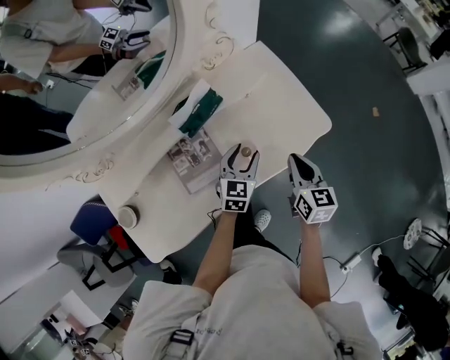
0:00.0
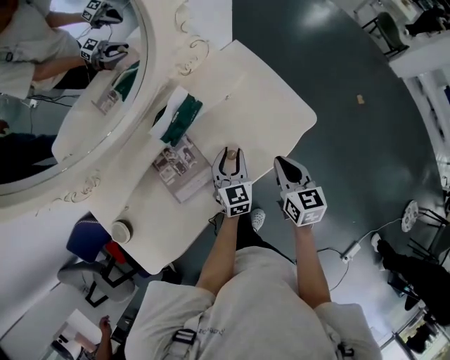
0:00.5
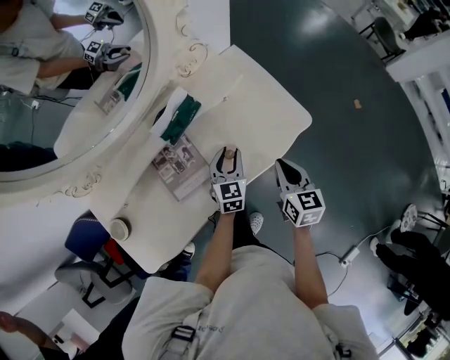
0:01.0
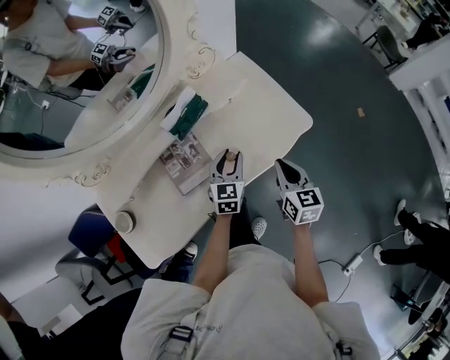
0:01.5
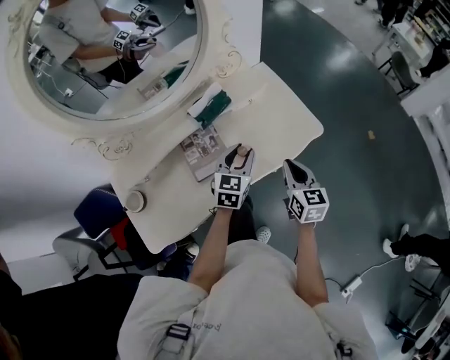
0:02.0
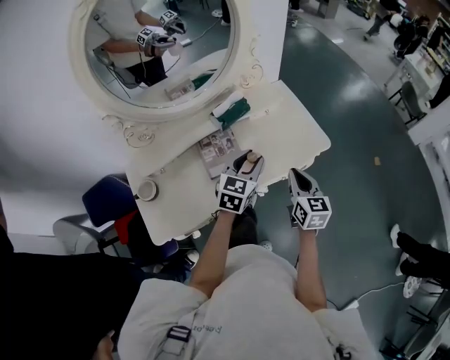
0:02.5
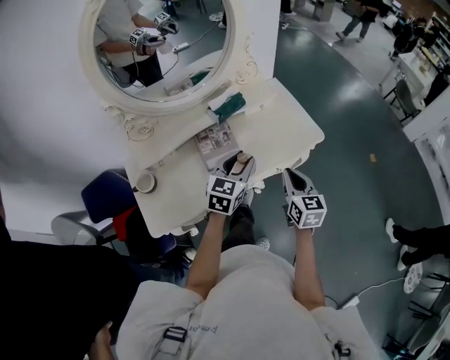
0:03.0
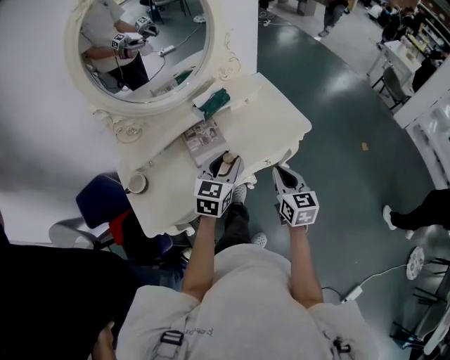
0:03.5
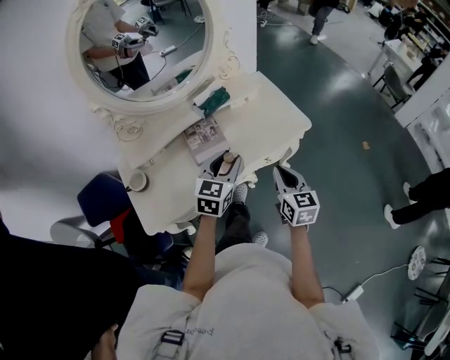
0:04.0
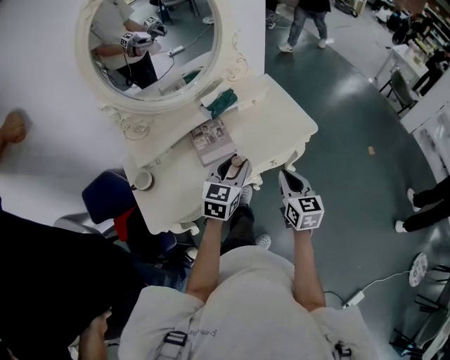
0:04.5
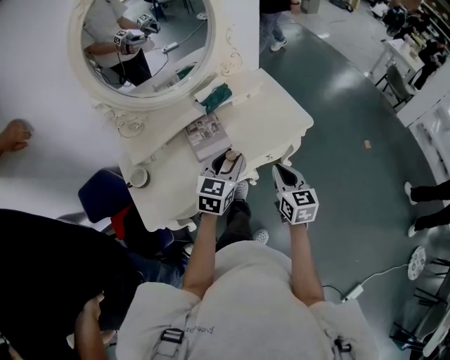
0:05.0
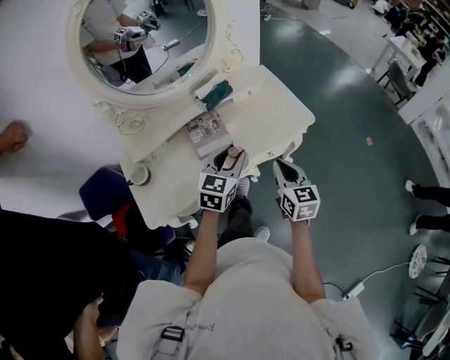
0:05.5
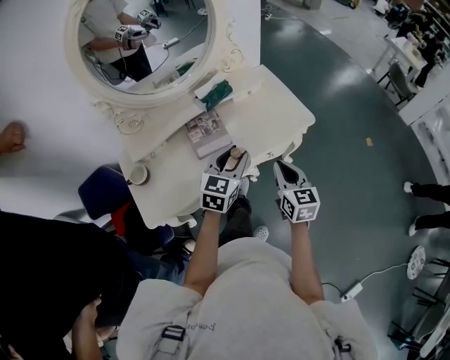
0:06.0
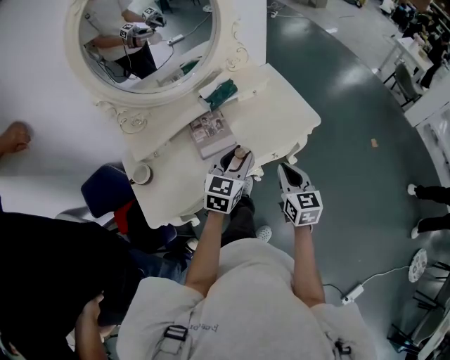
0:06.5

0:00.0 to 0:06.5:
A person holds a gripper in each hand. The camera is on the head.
0:00.0 to 0:02.0: The right gripper shifts approximately 10 cm backward and upward. Meanwhile the left gripper goes about 10 cm upward.
0:02.0 to 0:04.5: The left gripper is displaced backward and upward by approximately 15 cm. Meanwhile the right gripper moves backward, about 10 cm.
0:04.5 to 0:06.5: The grippers make only small movements.

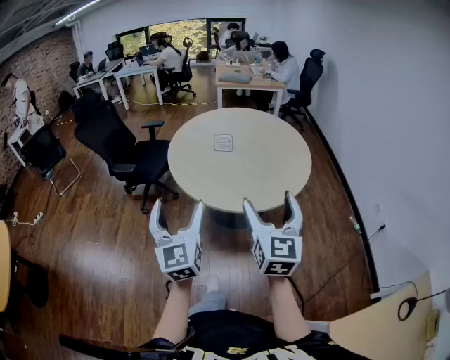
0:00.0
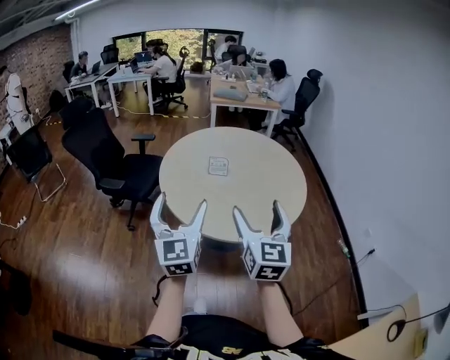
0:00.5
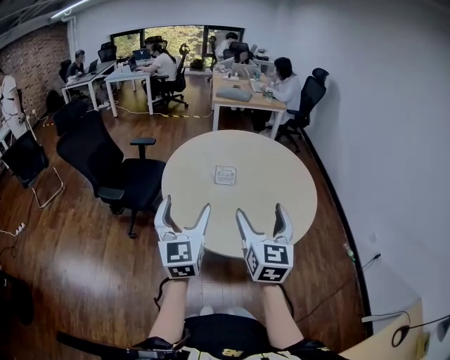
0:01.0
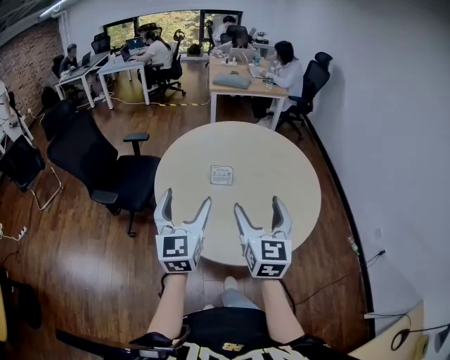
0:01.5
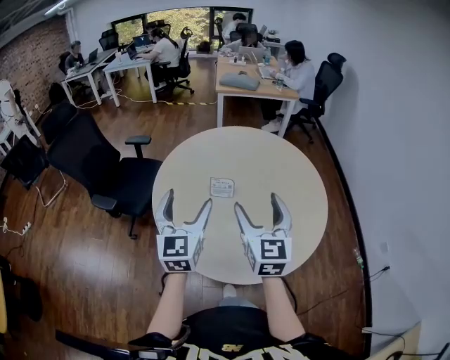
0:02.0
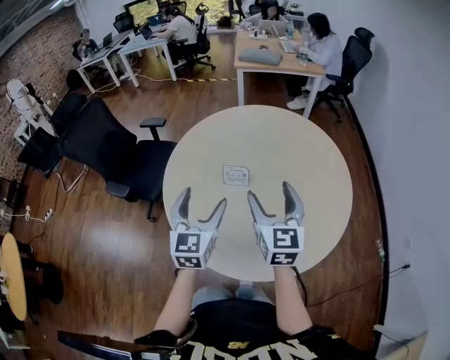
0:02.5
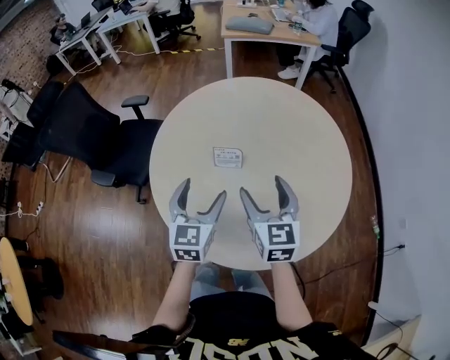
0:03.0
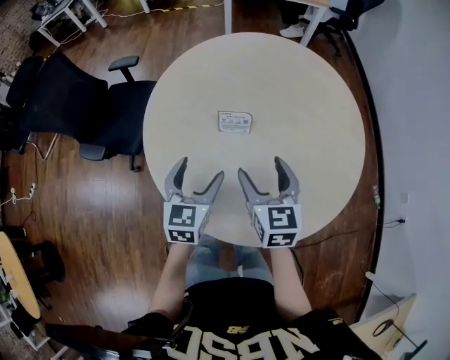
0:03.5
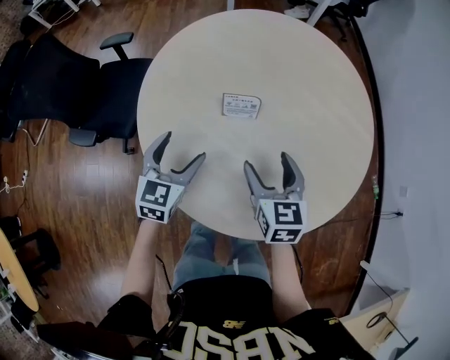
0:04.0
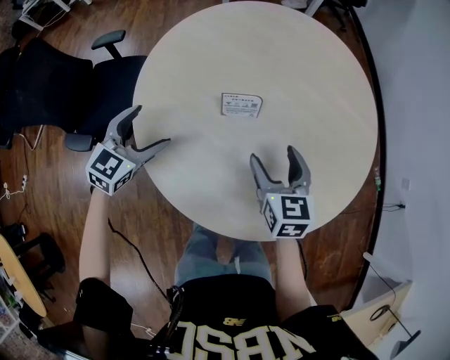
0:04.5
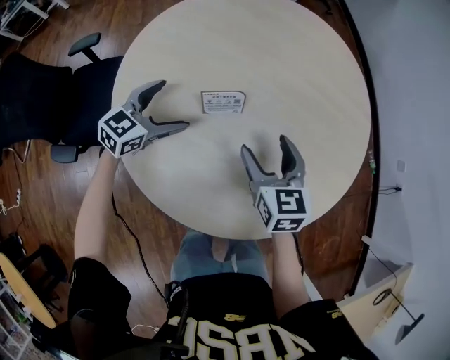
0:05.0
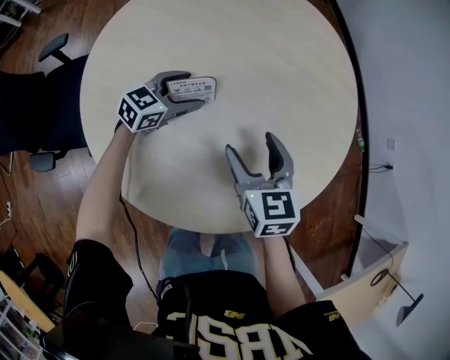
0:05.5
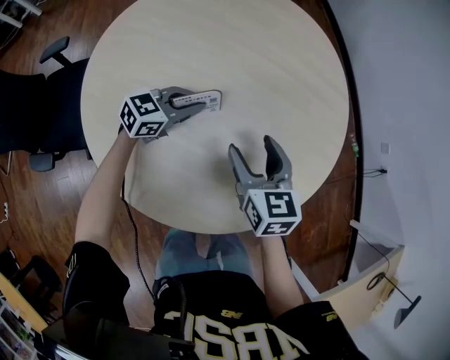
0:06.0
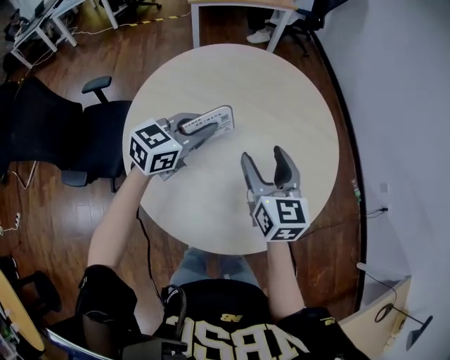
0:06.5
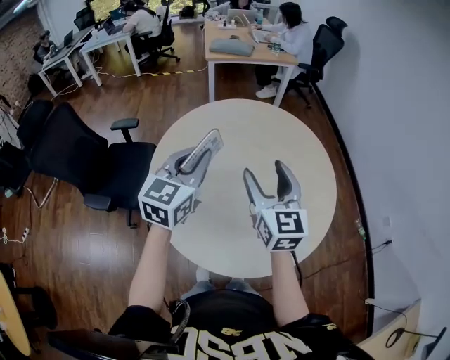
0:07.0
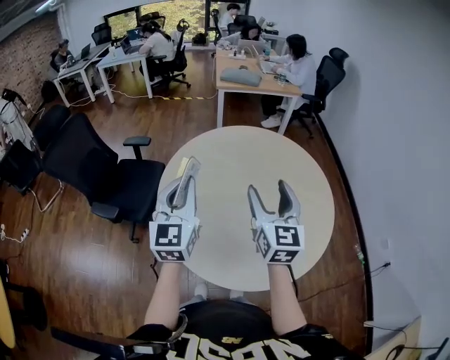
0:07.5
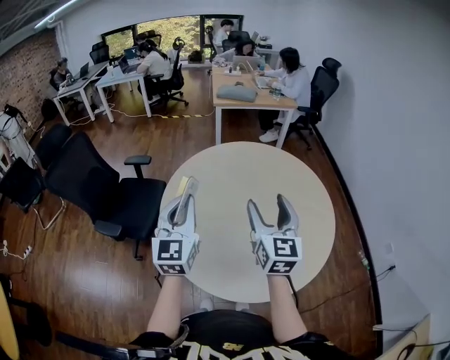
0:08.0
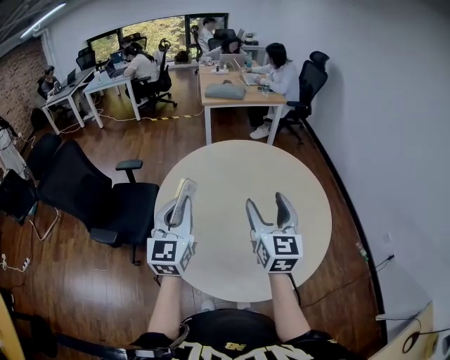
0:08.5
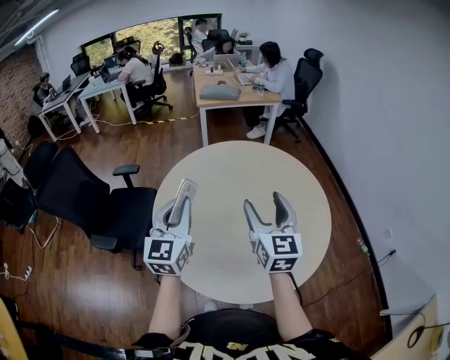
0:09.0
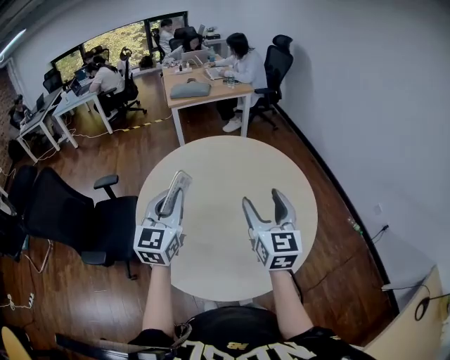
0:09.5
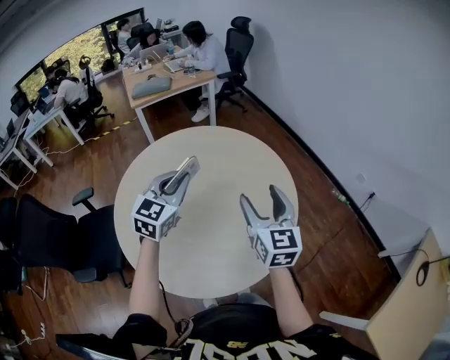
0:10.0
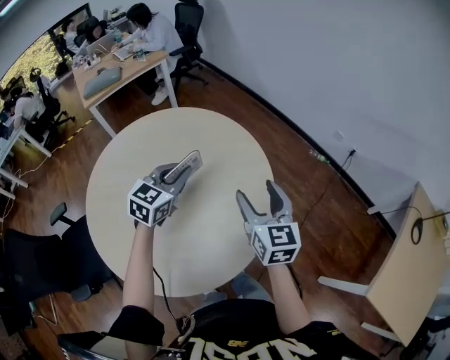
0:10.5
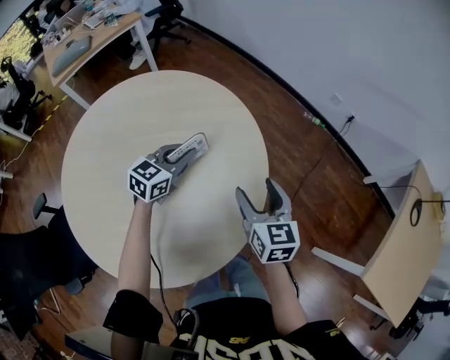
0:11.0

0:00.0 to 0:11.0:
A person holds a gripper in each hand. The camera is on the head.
0:00.0 to 0:02.0: The grippers both shift forward by about 40 cm.
0:02.0 to 0:03.5: The right gripper travels downward and forward by approximately 20 cm, and rotates some 20 degrees, while the left gripper heads downward, covering about 20 cm, and swivels roughly 30 degrees.
0:03.5 to 0:05.5: The right gripper is displaced downward by approximately 10 cm; the left gripper ends up roughly 25 cm from where it was, and swivels roughly 50 degrees.
0:05.5 to 0:07.5: Both grippers move upward, about 35 cm. The left gripper rotates some 70 degrees, and closes its fingers, while the right gripper tilts its fingers roughly 30 degrees upward.
0:07.5 to 0:09.0: There are only small adjustments of the grippers.
0:09.0 to 0:11.0: The left gripper changes place by some 50 cm, and swivels roughly 70 degrees; the right gripper ends up about 35 cm from where it was, and changes its angle by about 40 degrees.

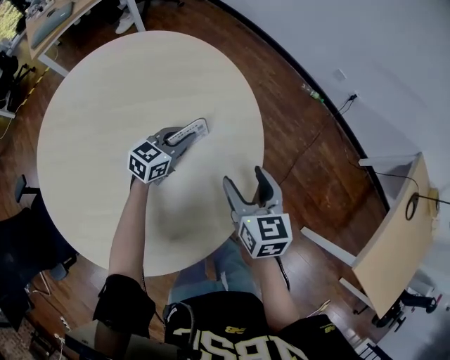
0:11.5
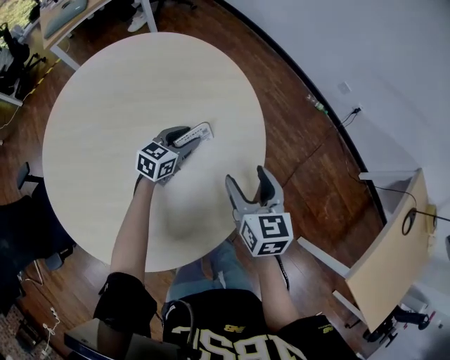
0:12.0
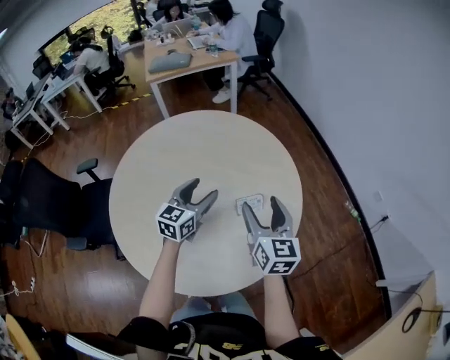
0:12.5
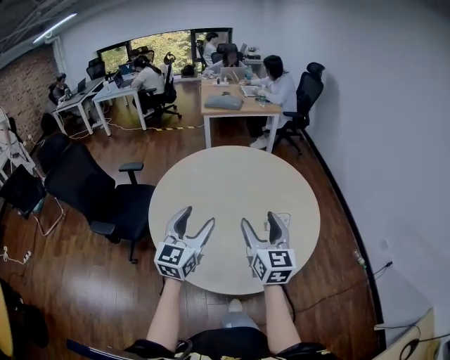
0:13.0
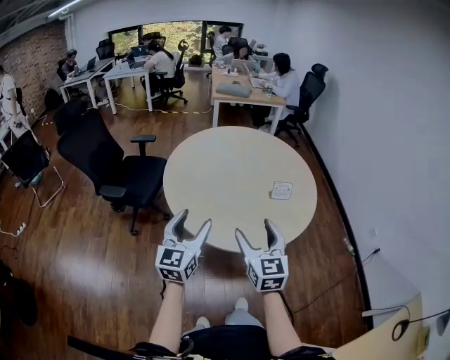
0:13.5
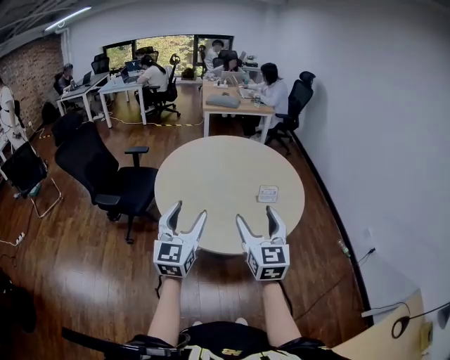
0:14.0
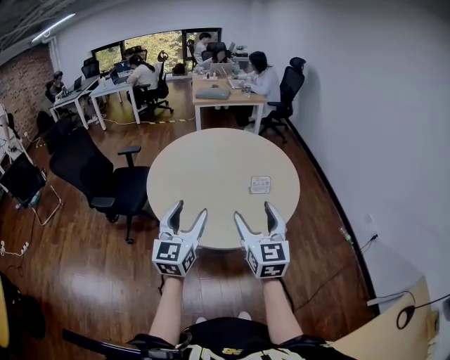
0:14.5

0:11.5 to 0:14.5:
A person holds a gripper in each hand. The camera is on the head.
0:11.5 to 0:13.0: The right gripper moves upward, some 20 cm, and rotates roughly 40 degrees; the left gripper ends up about 50 cm from where it was, rotates approximately 70 degrees, and opens.
0:13.0 to 0:14.5: Both grippers travel together backward, approximately 20 cm.

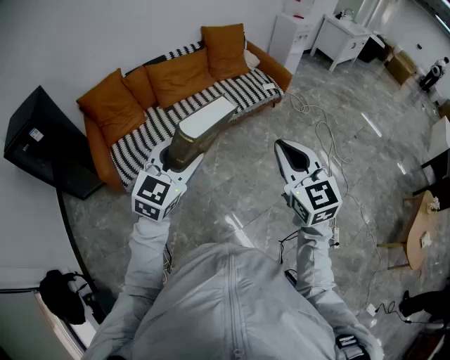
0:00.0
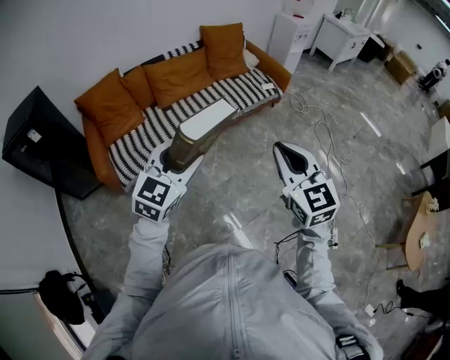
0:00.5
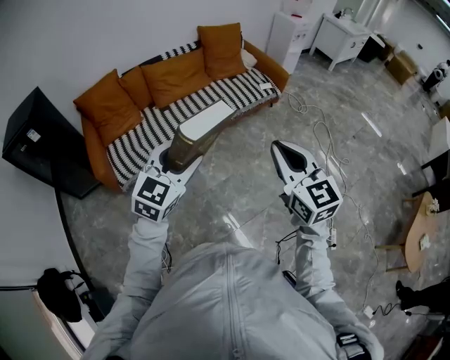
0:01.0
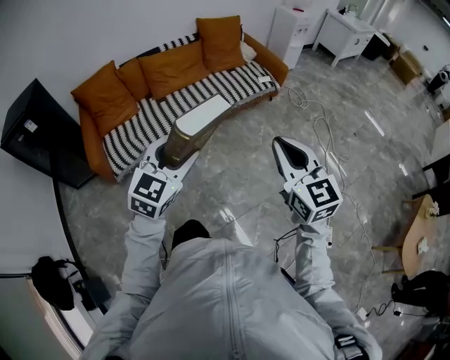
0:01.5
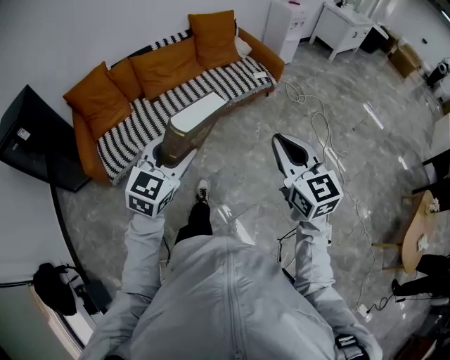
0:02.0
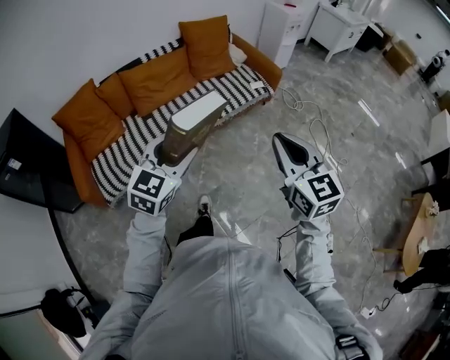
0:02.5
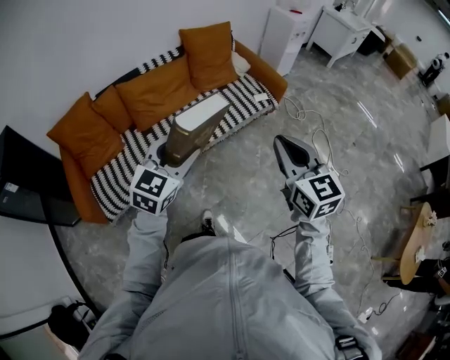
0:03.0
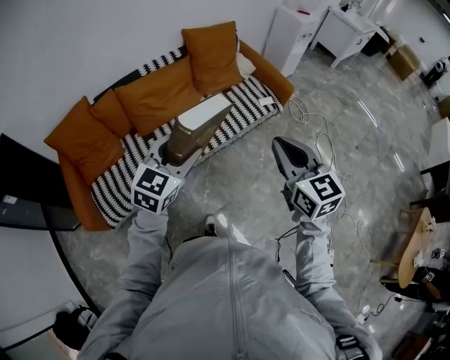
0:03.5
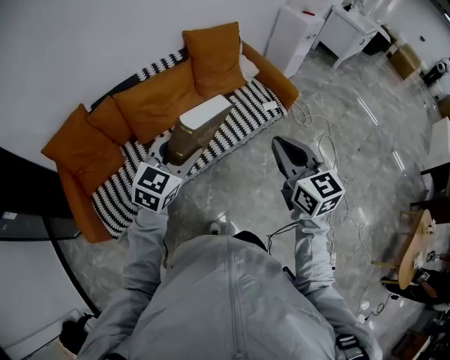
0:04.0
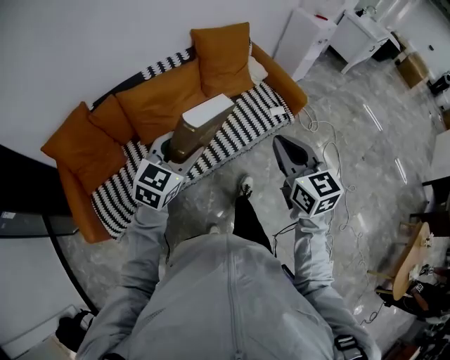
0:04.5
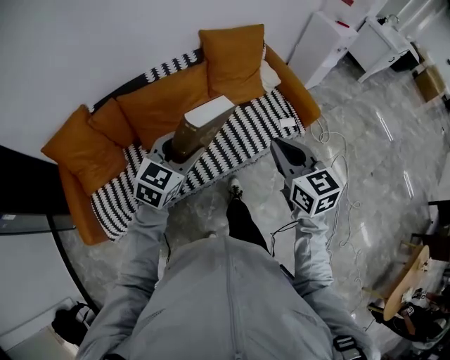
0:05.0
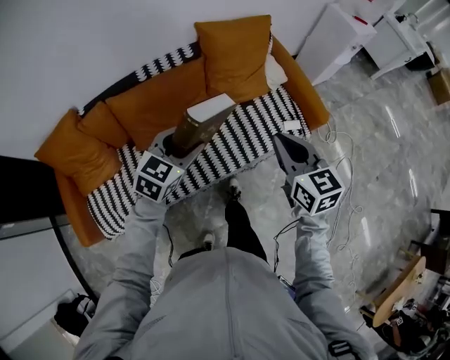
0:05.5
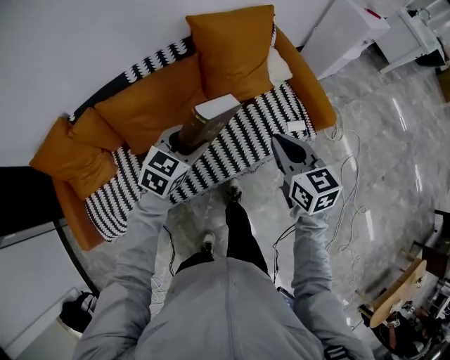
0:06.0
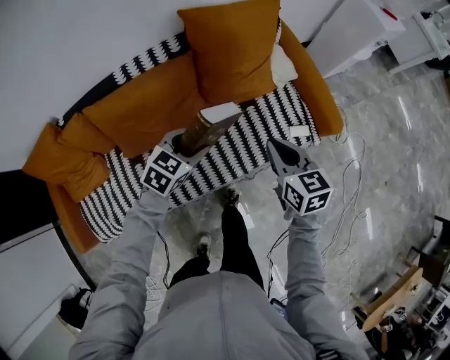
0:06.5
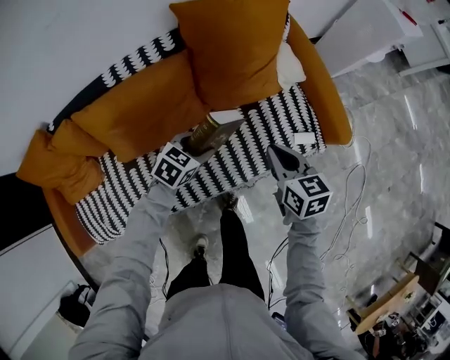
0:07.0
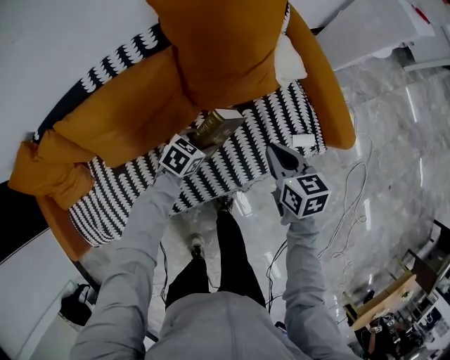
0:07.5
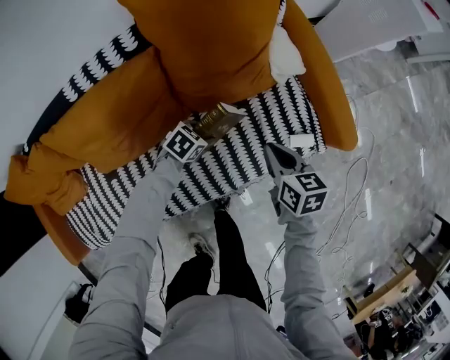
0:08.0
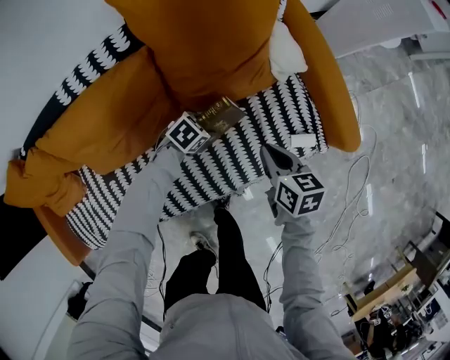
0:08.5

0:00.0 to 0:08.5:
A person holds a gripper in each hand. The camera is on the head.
0:00.0 to 0:02.0: Both grippers travel together to the right, roughly 10 cm.
0:02.0 to 0:04.0: The two grippers travel together, forward, about 40 cm.
0:04.0 to 0:06.5: The two grippers go roughly 50 cm forward and downward. The left gripper changes its angle by some 30 degrees. The right gripper swivels roughly 20 degrees.
0:06.5 to 0:08.5: The two grippers go roughly 30 cm downward and forward. The right gripper swivels some 20 degrees; the left gripper changes its angle by roughly 30 degrees.
